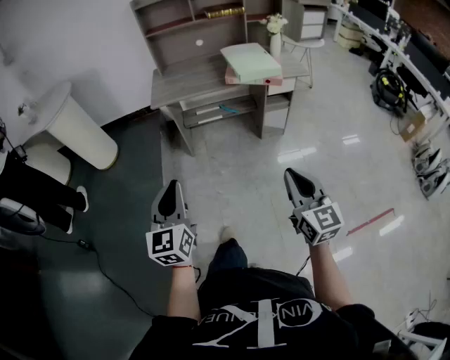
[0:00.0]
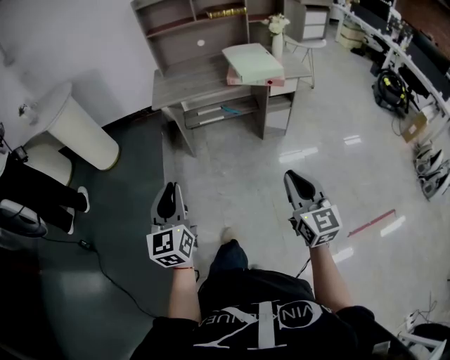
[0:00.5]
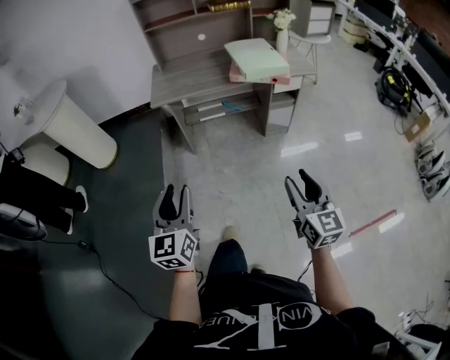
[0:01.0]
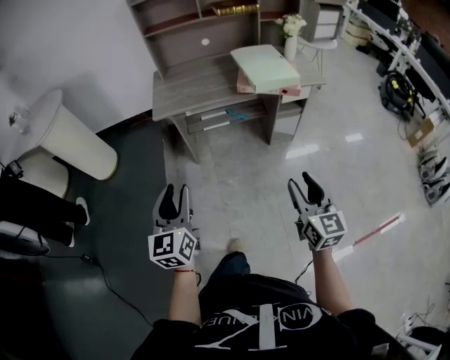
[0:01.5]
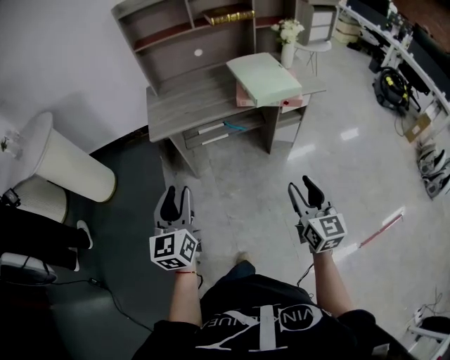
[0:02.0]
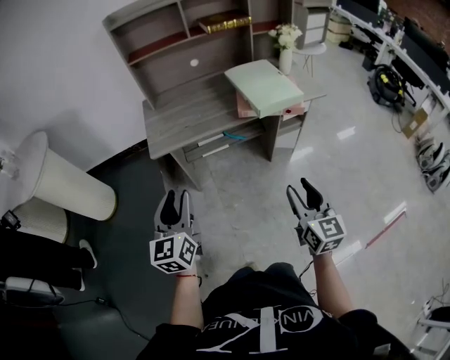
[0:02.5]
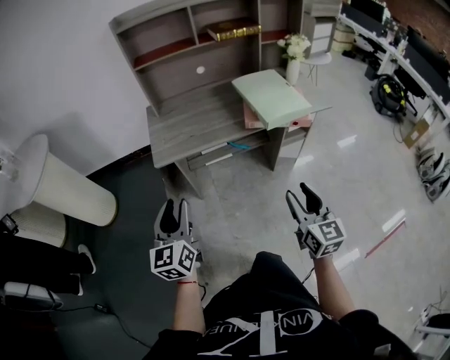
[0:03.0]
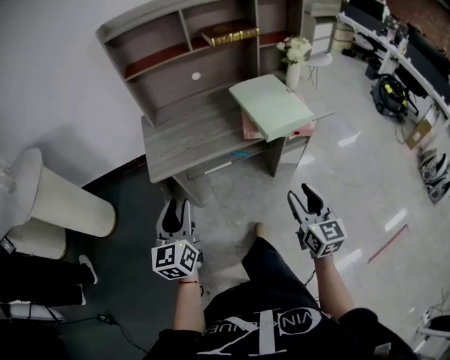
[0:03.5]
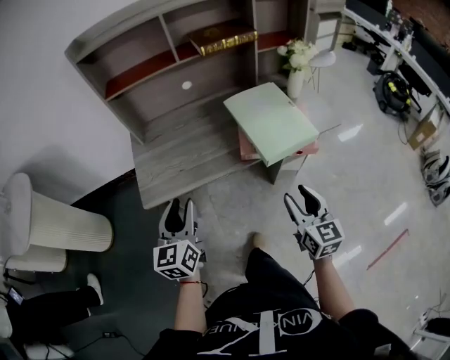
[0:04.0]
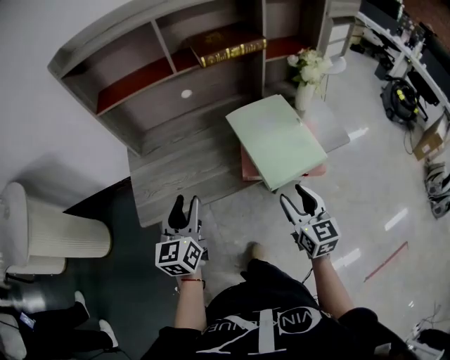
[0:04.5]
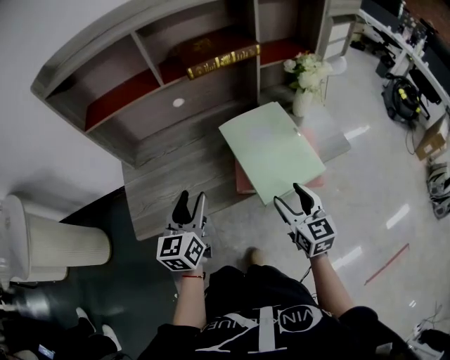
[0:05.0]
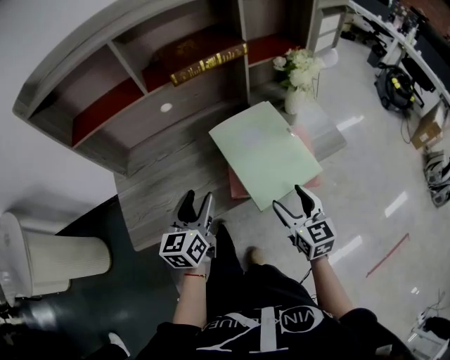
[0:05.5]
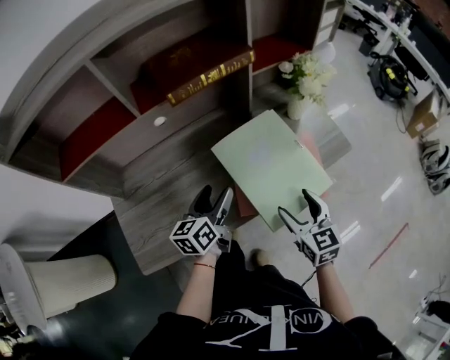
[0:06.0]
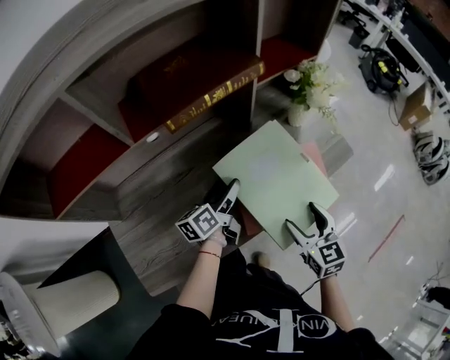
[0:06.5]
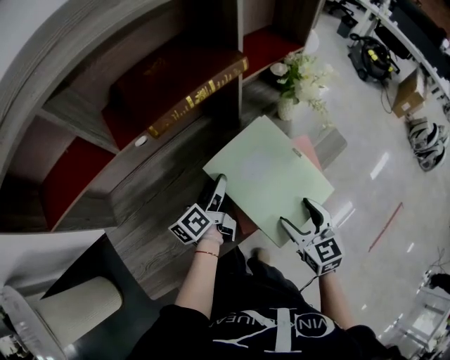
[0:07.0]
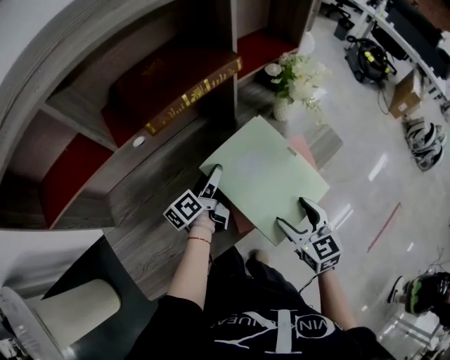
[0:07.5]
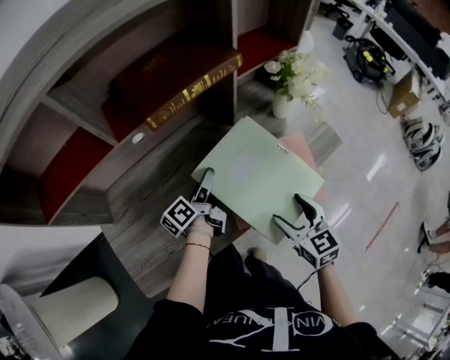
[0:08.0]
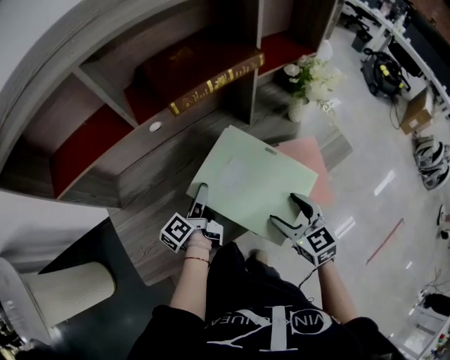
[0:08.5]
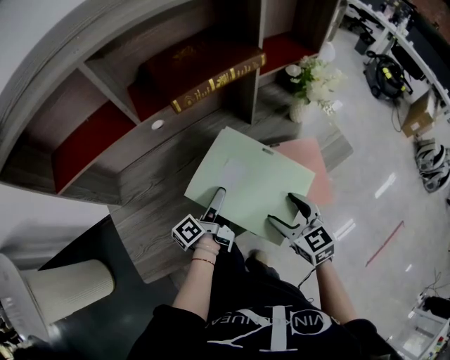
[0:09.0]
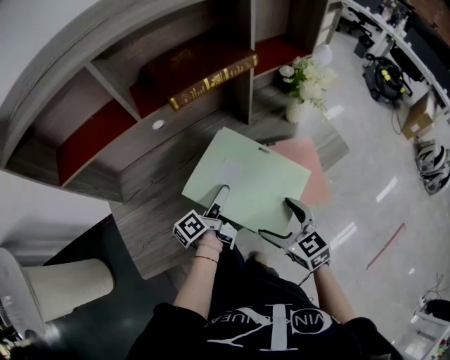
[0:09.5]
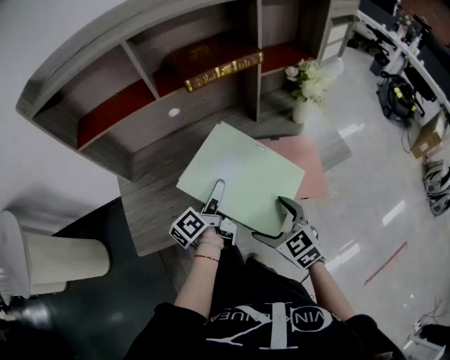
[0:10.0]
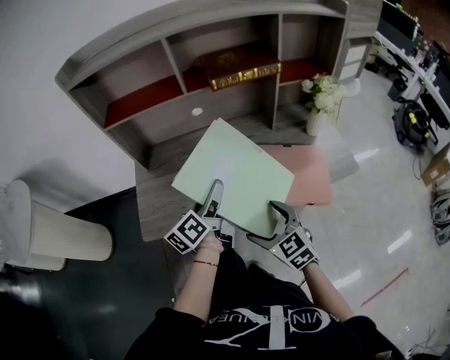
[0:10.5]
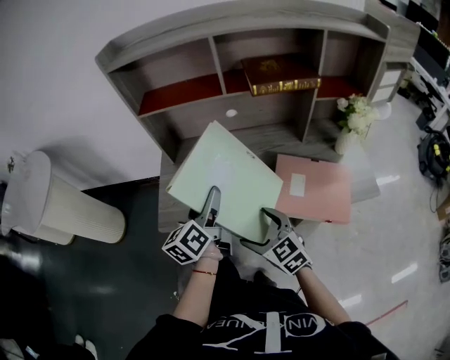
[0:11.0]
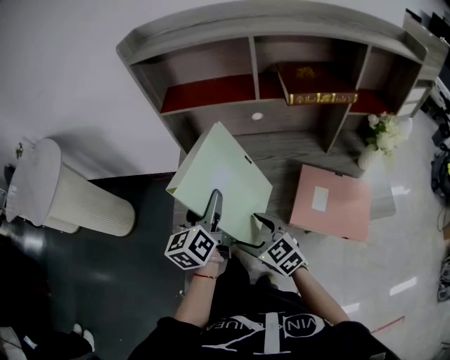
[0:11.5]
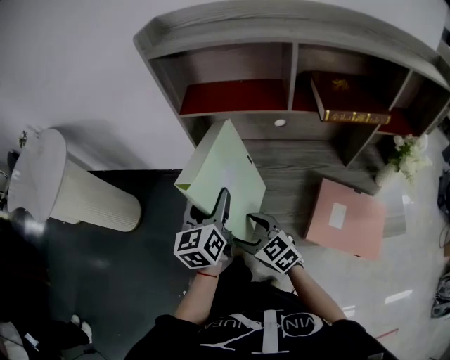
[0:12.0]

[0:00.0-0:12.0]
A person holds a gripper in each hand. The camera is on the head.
0:00.0 to 0:02.0: Both grippers travel together forward, approximately 20 cm. The right gripper opens its fingers.
0:02.0 to 0:04.0: The two grippers go approximately 30 cm forward.
0:04.0 to 0:06.0: The left gripper goes roughly 35 cm forward and to the right, changes its angle by roughly 30 degrees, and opens its fingers; the right gripper travels forward by some 20 cm.
0:06.0 to 0:08.0: The left gripper is displaced forward and downward by about 10 cm, and turns by approximately 30 degrees.
0:08.0 to 0:10.0: The left gripper travels backward and upward by approximately 15 cm; the right gripper moves to the left and backward, some 10 cm, and changes its angle by about 30 degrees.
0:10.0 to 0:12.0: The left gripper changes place by some 30 cm, and changes its angle by approximately 60 degrees, while the right gripper moves about 30 cm, and turns by about 40 degrees.

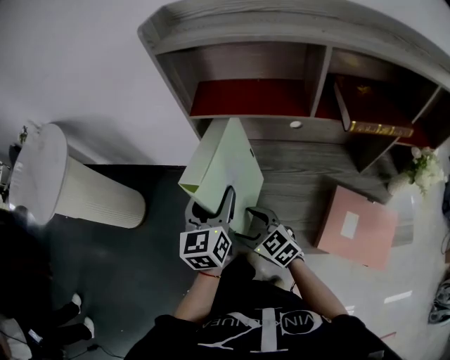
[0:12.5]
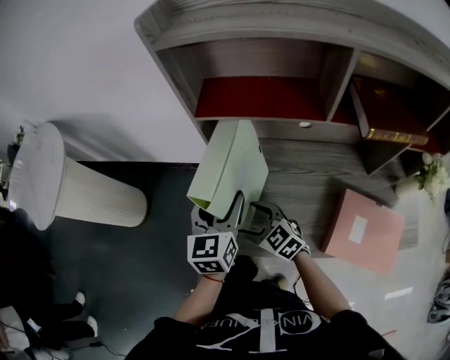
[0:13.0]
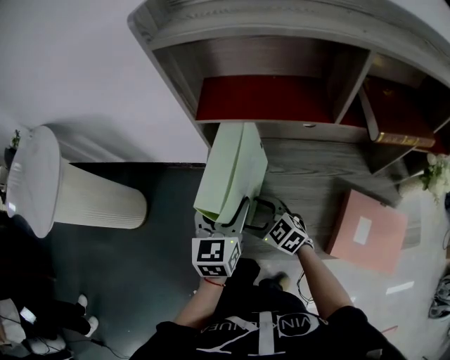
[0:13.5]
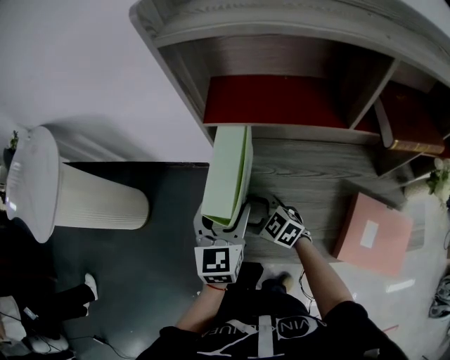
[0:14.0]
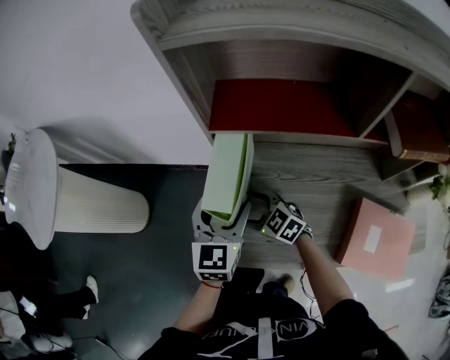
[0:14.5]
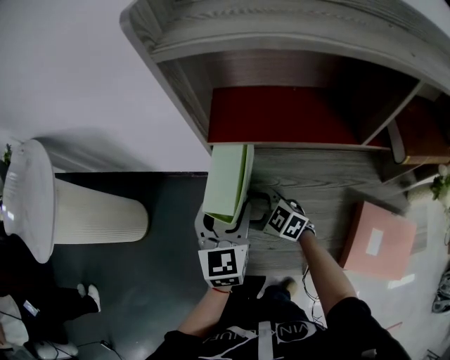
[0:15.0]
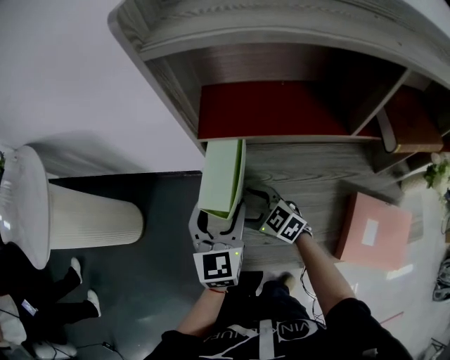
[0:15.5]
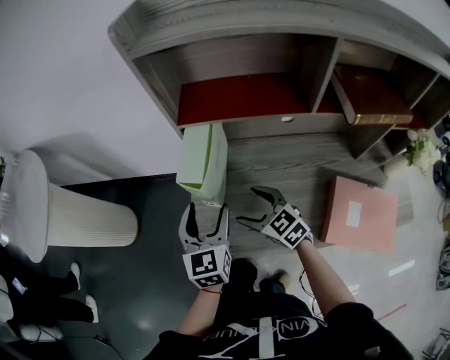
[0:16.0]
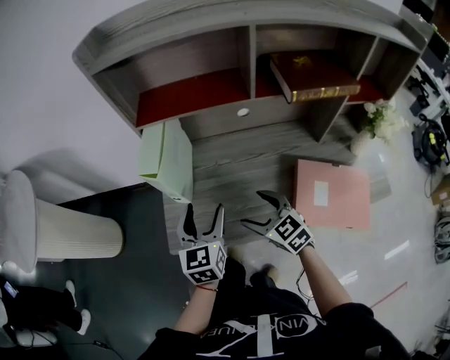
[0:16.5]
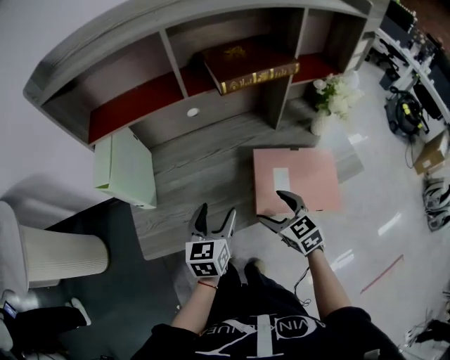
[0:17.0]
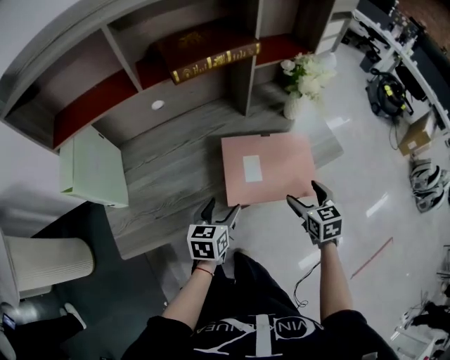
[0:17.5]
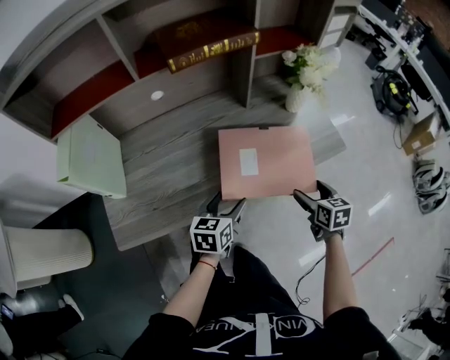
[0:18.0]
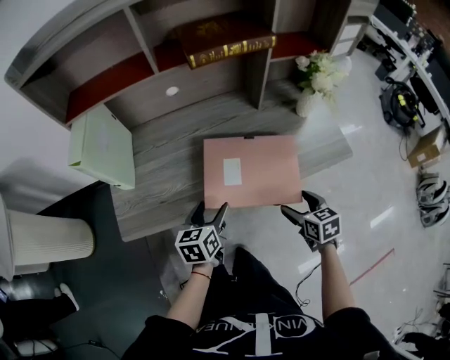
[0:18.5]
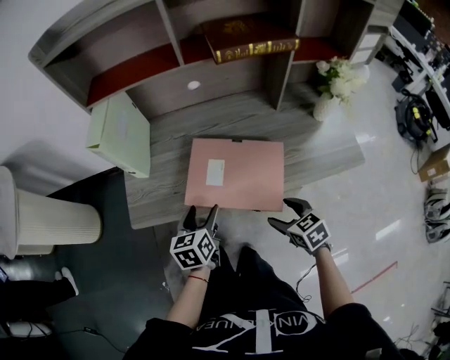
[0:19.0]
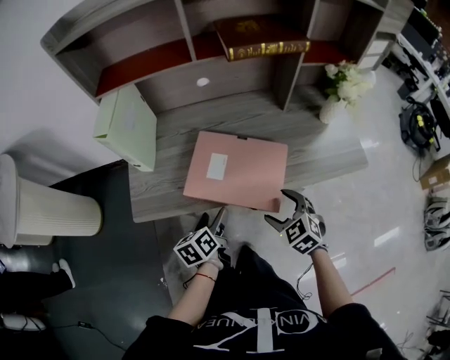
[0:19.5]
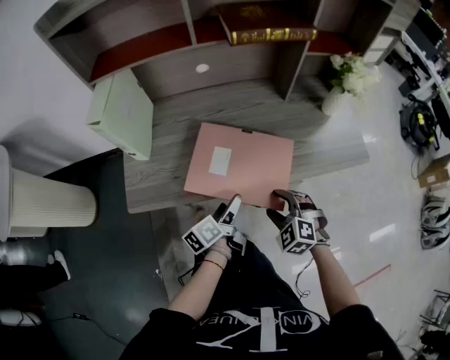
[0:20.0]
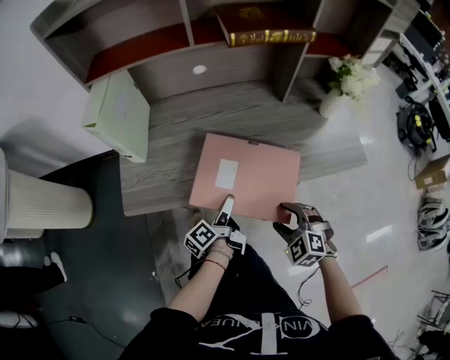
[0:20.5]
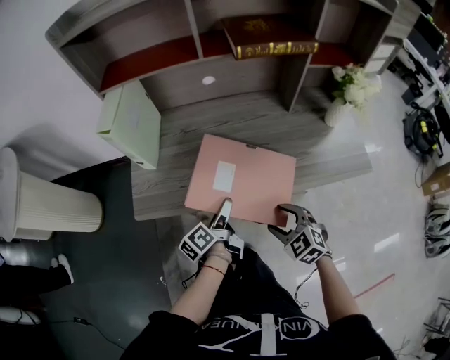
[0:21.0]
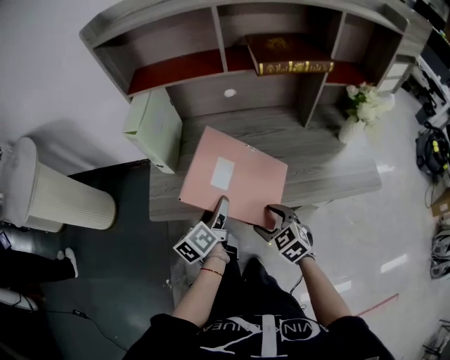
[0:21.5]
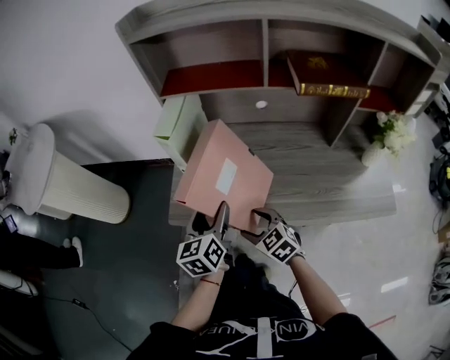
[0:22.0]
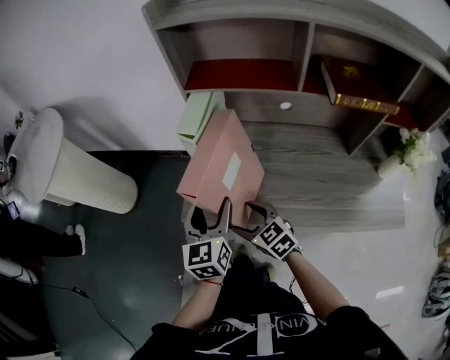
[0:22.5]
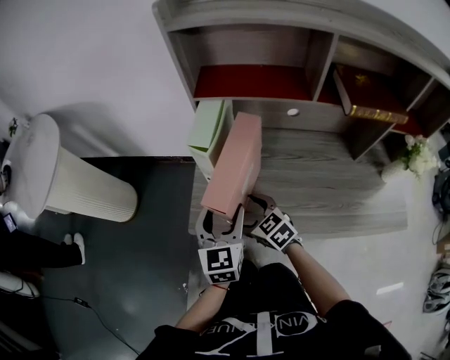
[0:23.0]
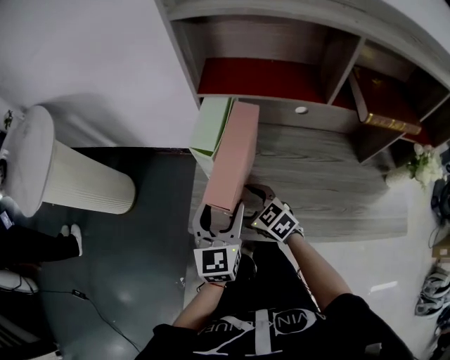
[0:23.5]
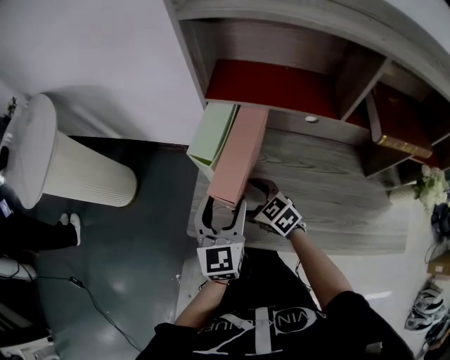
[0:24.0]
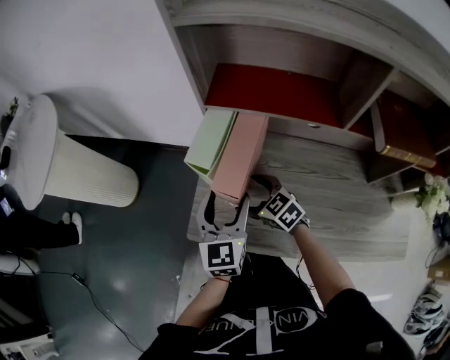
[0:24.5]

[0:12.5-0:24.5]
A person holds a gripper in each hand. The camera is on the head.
0:12.5 to 0:14.5: The left gripper is displaced forward by about 5 cm, while the right gripper shifts approximately 15 cm forward.
0:14.5 to 0:16.5: The right gripper moves backward and to the right, approximately 20 cm, and changes its angle by some 30 degrees, while the left gripper moves backward, roughly 15 cm.
0:16.5 to 0:18.5: The left gripper moves about 25 cm, and rotates about 30 degrees. Meanwhile the right gripper moves roughly 35 cm, and changes its angle by roughly 40 degrees.
0:18.5 to 0:20.5: The left gripper travels downward by some 5 cm, and rolls counterclockwise, seen from behind, by some 60 degrees. Meanwhile the right gripper shifts roughly 10 cm to the left, and twists some 60 degrees counterclockwise, seen from behind.
0:20.5 to 0:22.5: The left gripper ends up roughly 30 cm from where it was, and rolls clockwise, seen from behind, by about 70 degrees; the right gripper changes place by roughly 35 cm, and turns by some 40 degrees.
0:22.5 to 0:24.5: The right gripper heads forward, covering about 15 cm; the left gripper heads forward, covering about 10 cm.

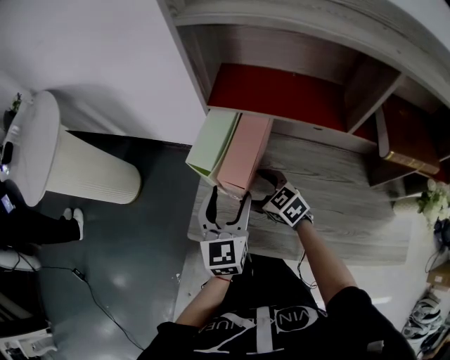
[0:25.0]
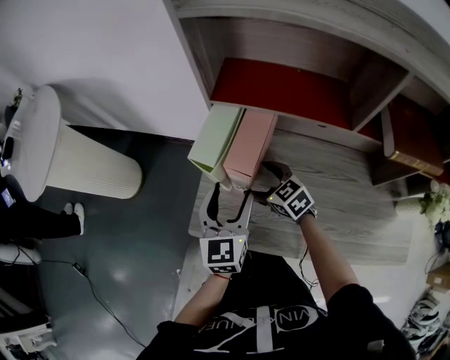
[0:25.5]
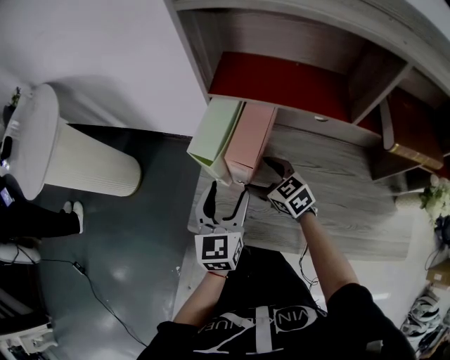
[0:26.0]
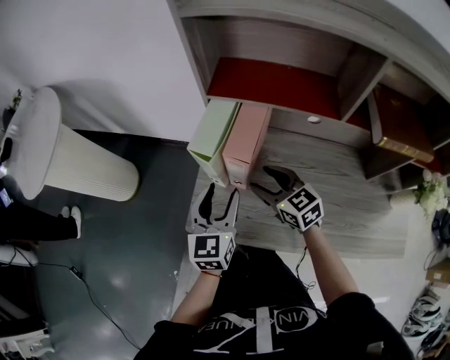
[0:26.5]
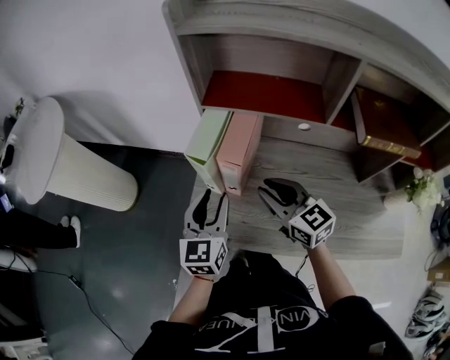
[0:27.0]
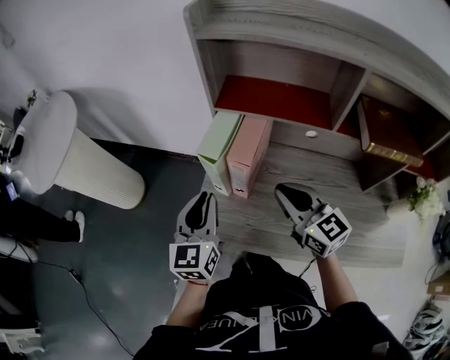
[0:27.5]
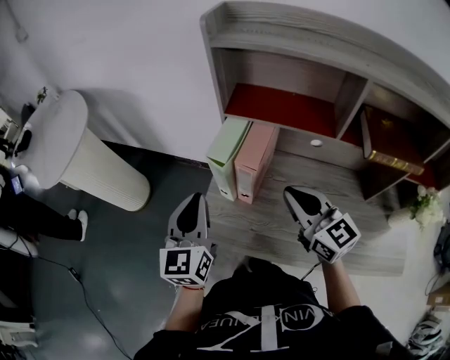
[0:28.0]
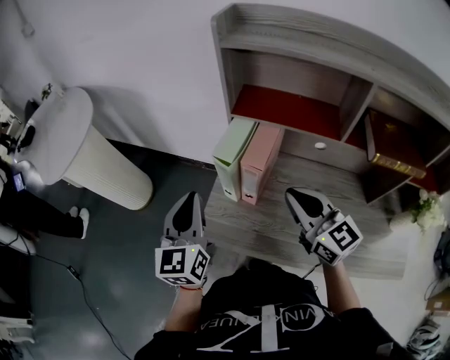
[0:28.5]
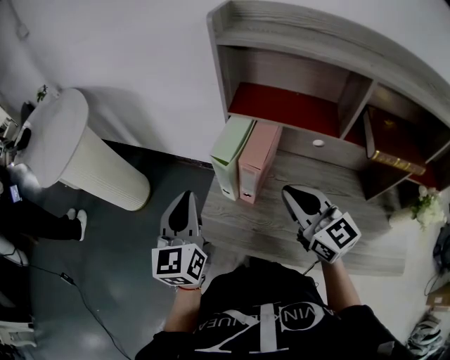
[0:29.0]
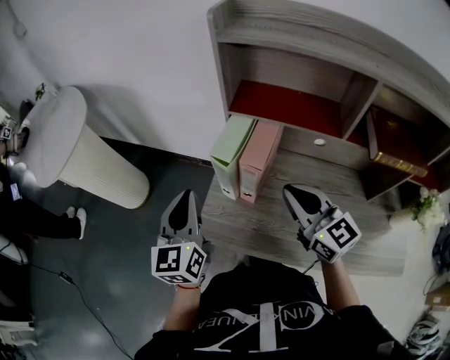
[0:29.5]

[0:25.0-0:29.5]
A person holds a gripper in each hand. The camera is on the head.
0:25.0 to 0:27.0: The right gripper shifts roughly 15 cm upward and backward, turns by some 30 degrees, and closes its fingers. The left gripper closes its fingers.
0:27.0 to 0:29.5: The left gripper moves to the left and upward, about 15 cm, and closes. The right gripper heads upward, covering about 10 cm.
